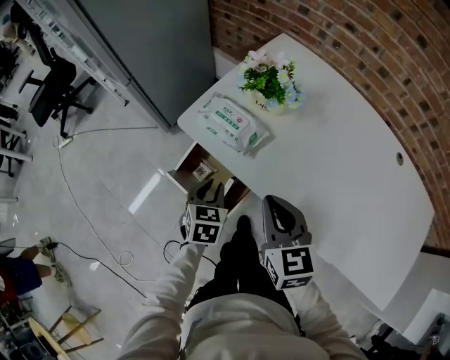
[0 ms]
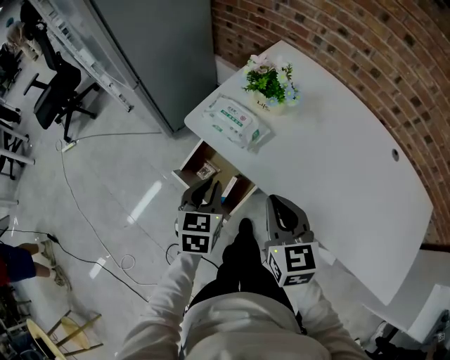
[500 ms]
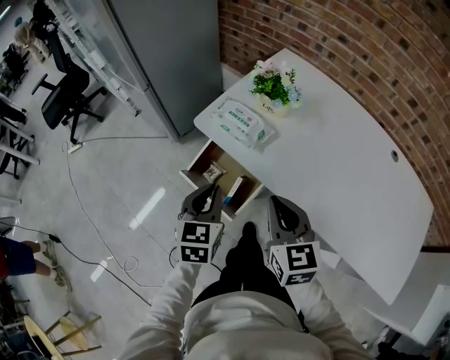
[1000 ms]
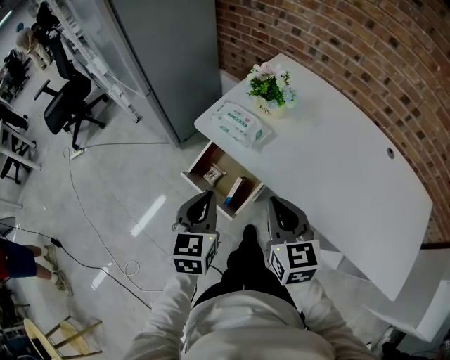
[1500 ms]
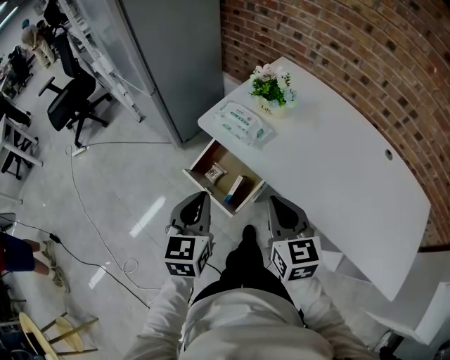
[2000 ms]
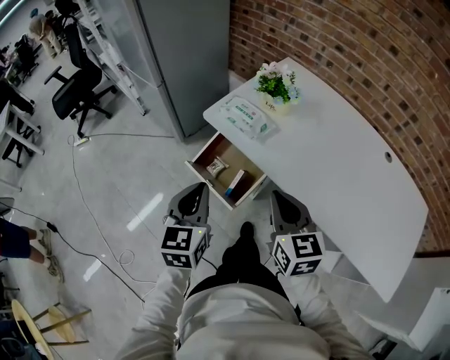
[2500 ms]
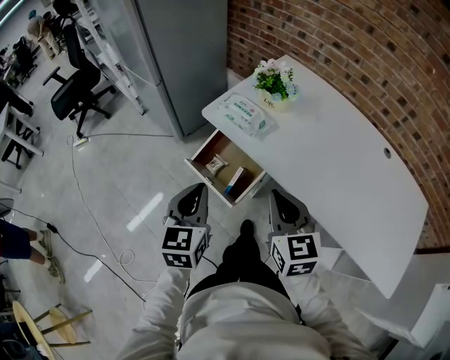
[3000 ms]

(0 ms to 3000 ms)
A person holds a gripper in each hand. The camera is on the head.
0 ms - 1500 ms: The right gripper travels backward by approximately 5 cm. Meanwhile the left gripper moves upward and backward, approximately 20 cm, and turns by approximately 20 degrees.
1500 ms - 3000 ms: The left gripper moves about 5 cm.

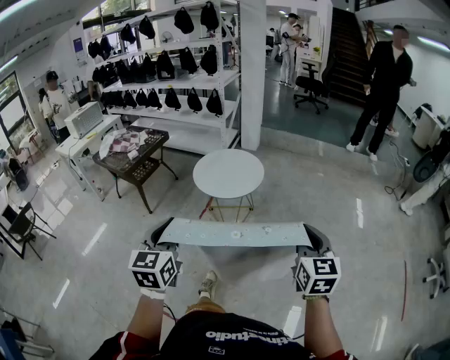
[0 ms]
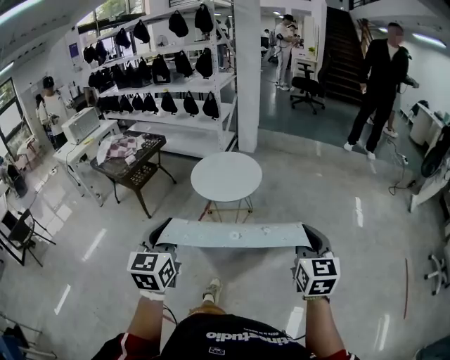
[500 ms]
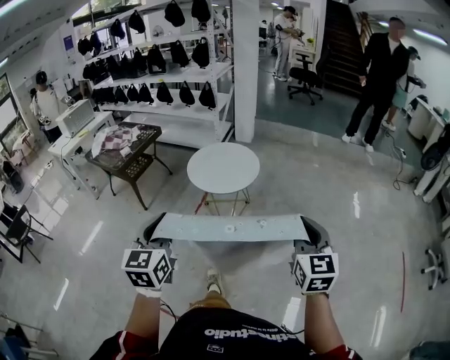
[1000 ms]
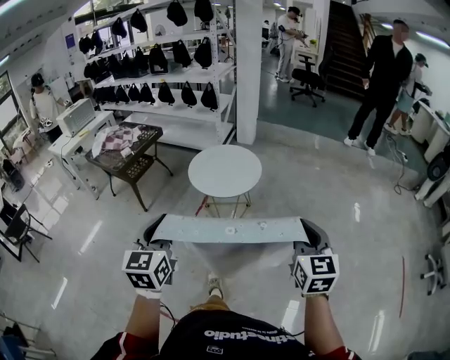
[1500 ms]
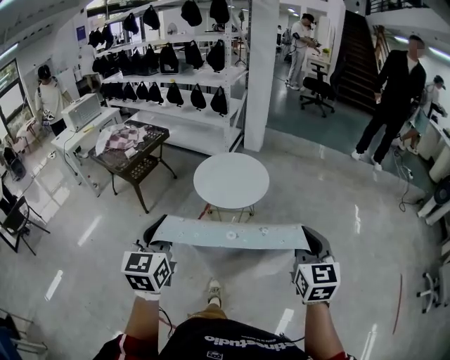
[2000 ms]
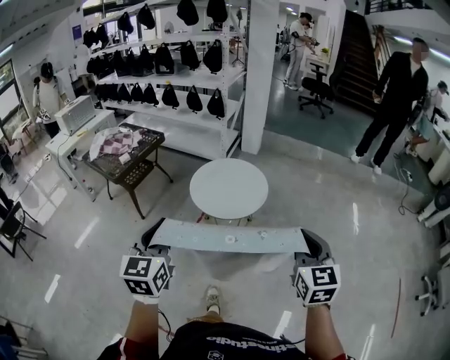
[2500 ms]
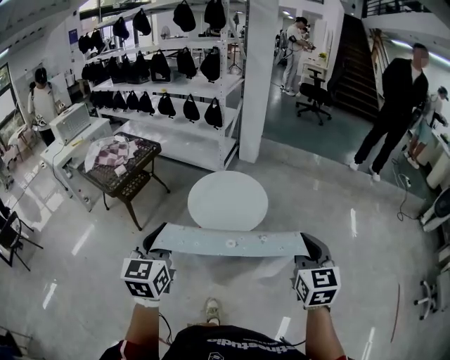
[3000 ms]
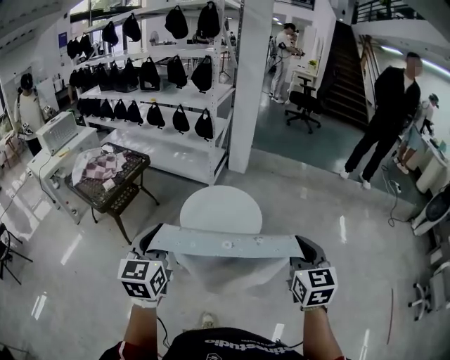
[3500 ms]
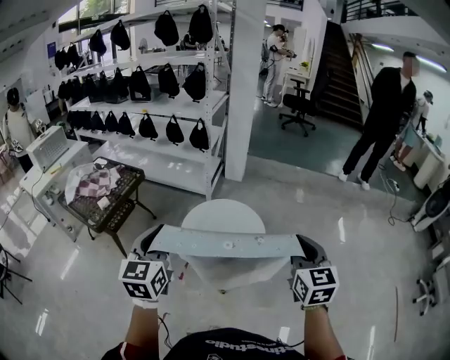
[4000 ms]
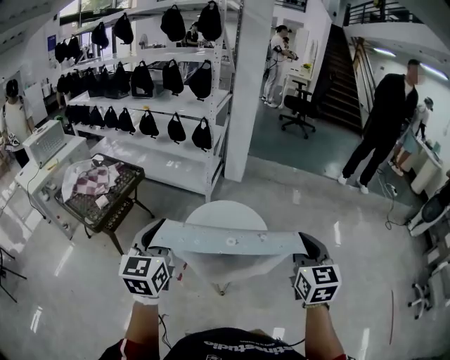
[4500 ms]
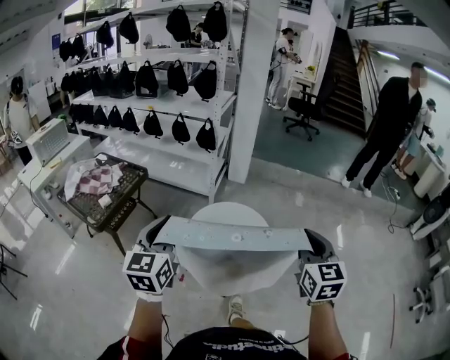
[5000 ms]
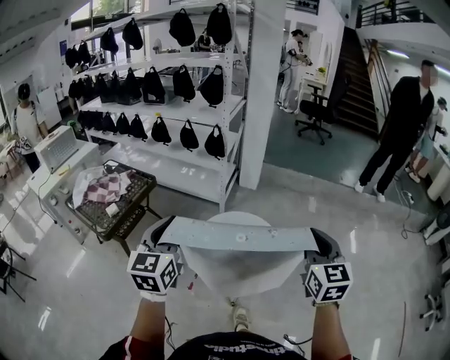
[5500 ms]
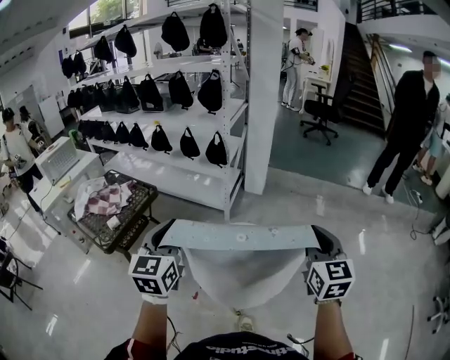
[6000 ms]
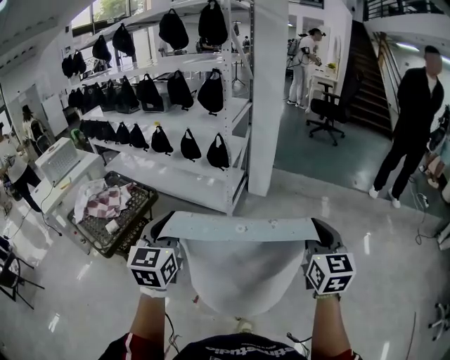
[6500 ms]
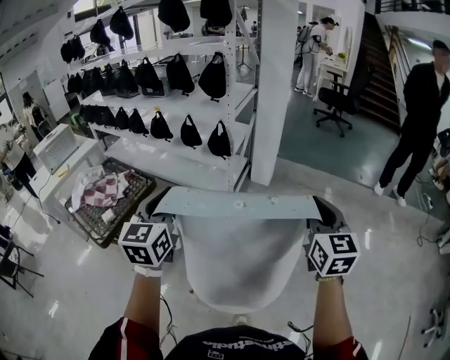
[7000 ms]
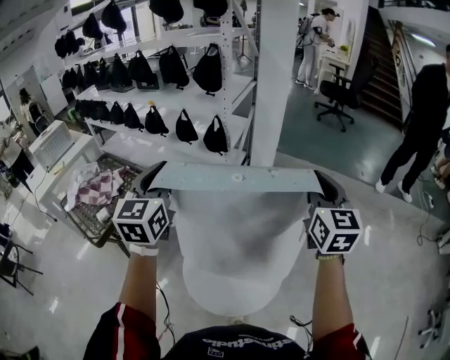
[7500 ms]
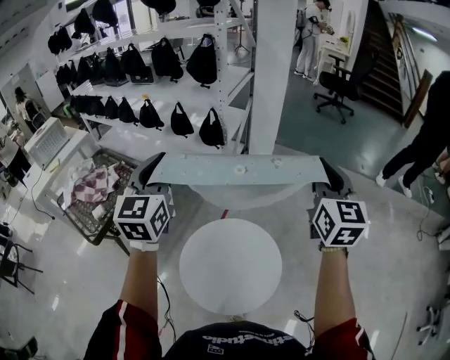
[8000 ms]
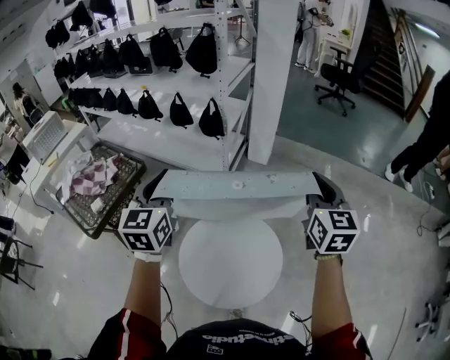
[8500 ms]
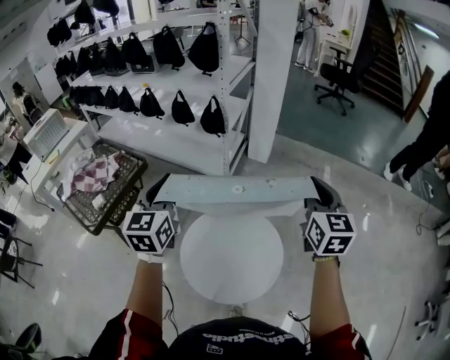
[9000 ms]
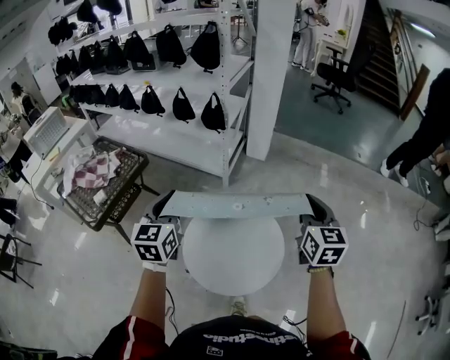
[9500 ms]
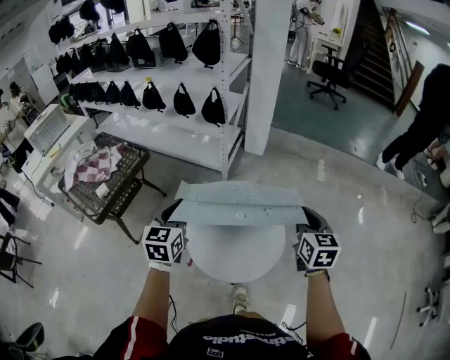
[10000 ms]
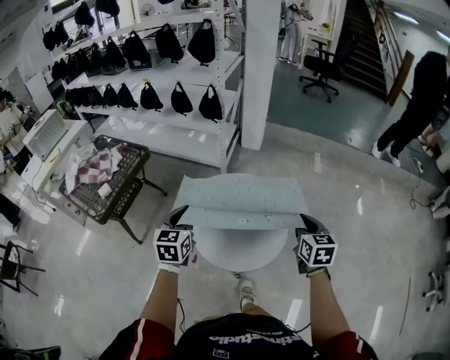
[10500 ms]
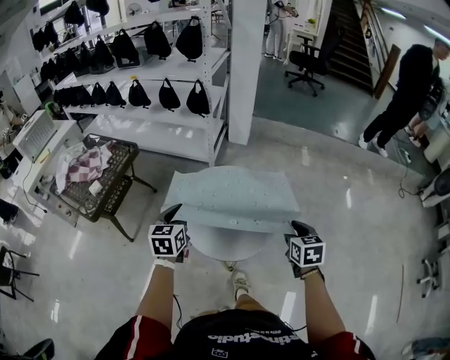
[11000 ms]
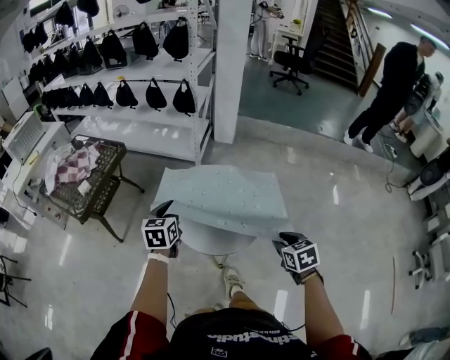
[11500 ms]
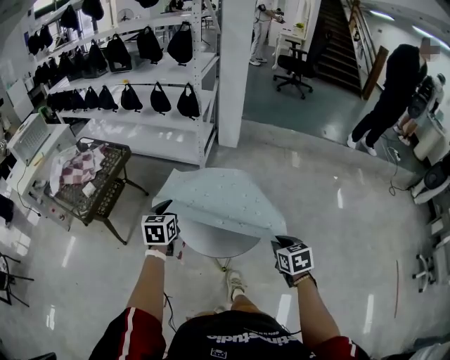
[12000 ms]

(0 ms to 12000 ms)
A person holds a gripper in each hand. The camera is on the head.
0 ms - 2000 ms: The grippers both shift forward by roughly 10 cm.
2000 ms - 4000 ms: The two grippers go roughly 30 cm forward.
4000 ms - 6000 ms: Both grippers move forward, approximately 20 cm.
6000 ms - 8000 ms: Both grippers travel together forward, some 25 cm.
8000 ms - 10000 ms: Both grippers move downward and backward, approximately 30 cm. The left gripper changes its angle by approximately 20 degrees; the right gripper turns by about 20 degrees.
10000 ms - 12000 ms: The right gripper moves backward and downward, roughly 25 cm, turns by about 30 degrees, and opens and closes again. The left gripper is displaced downward and backward by roughly 10 cm.

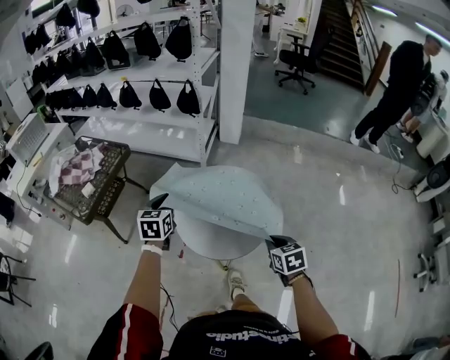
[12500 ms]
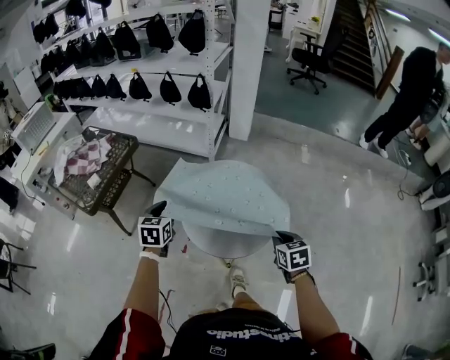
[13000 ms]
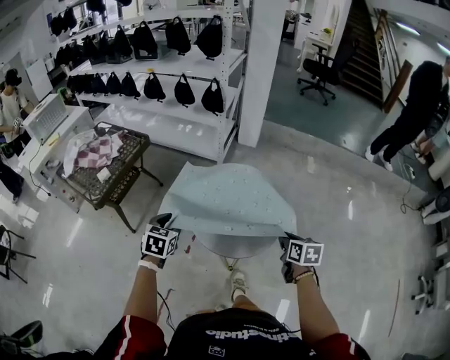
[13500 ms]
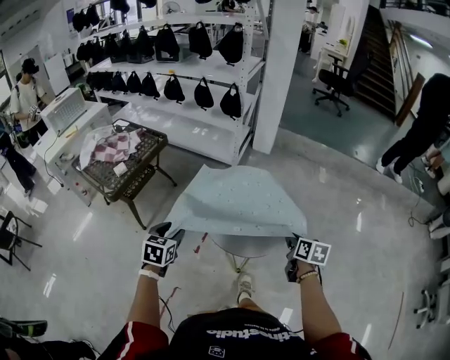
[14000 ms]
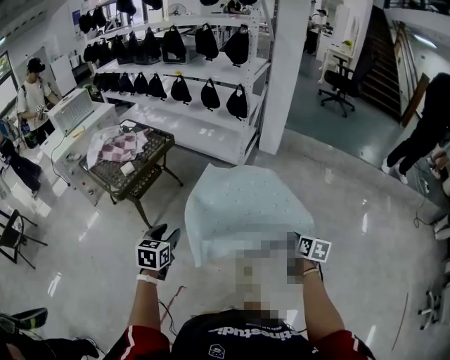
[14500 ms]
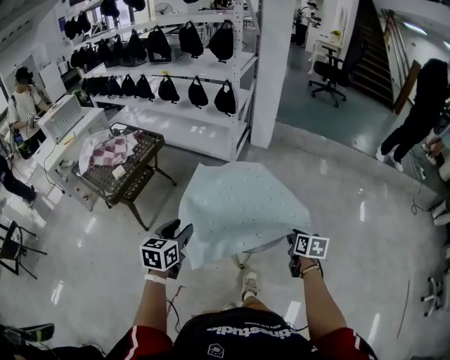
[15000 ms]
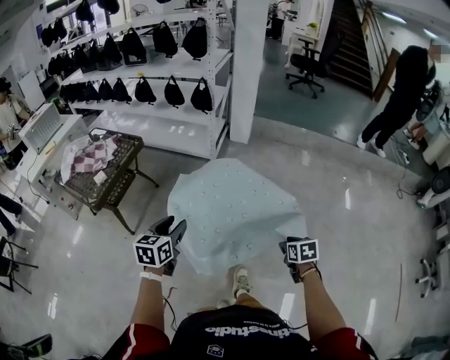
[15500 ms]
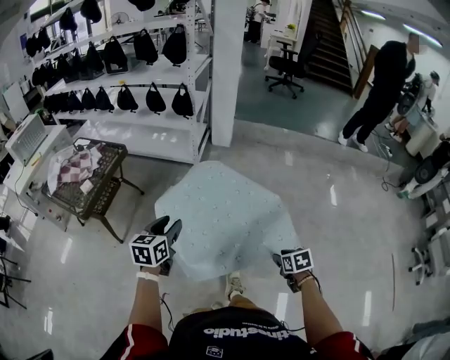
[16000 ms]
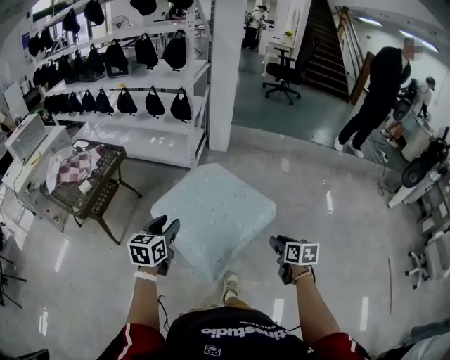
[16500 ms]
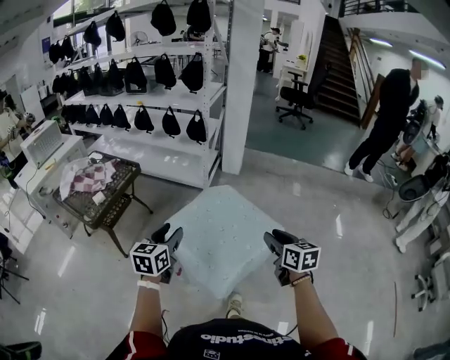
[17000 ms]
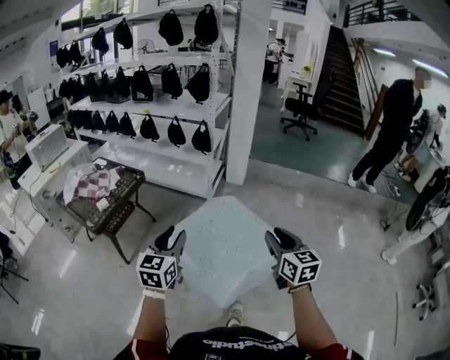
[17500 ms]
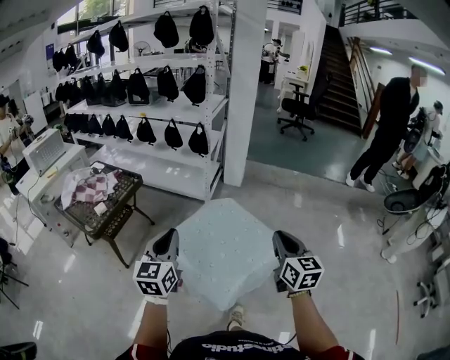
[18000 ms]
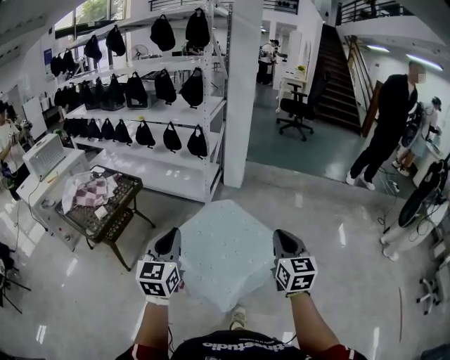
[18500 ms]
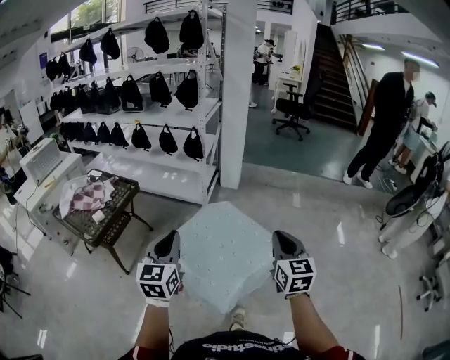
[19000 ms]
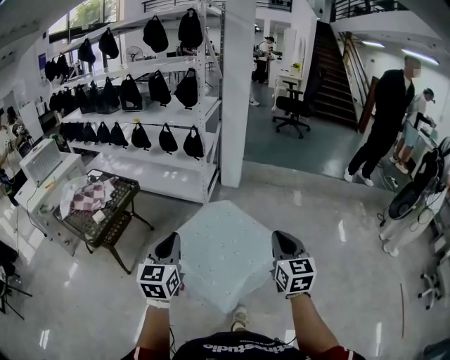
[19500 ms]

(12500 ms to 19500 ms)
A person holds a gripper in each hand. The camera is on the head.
12500 ms - 14500 ms: The right gripper rotates about 30 degrees; the left gripper travels backward and to the left by approximately 25 cm, and opens its fingers.
14500 ms - 16000 ms: The right gripper goes some 20 cm backward, to the right and downward, swivels some 20 degrees, and opens. Meanwhile the left gripper is displaced to the right by some 15 cm.
16000 ms - 17500 ms: The left gripper moves upward, roughly 10 cm, and turns by about 20 degrees; the right gripper is displaced upward and to the left by some 30 cm, and tips its fingers upward by some 50 degrees.
17500 ms - 19500 ms: The left gripper closes, while the right gripper closes its fingers.

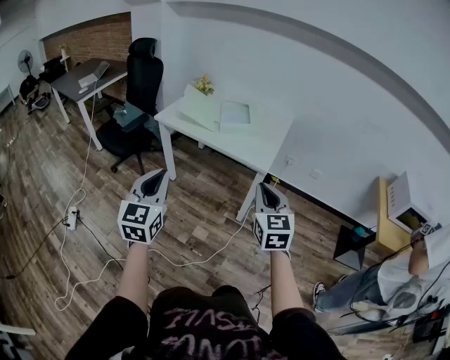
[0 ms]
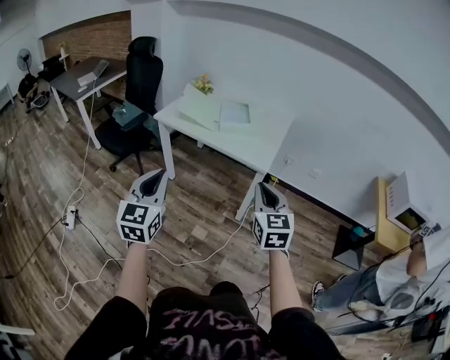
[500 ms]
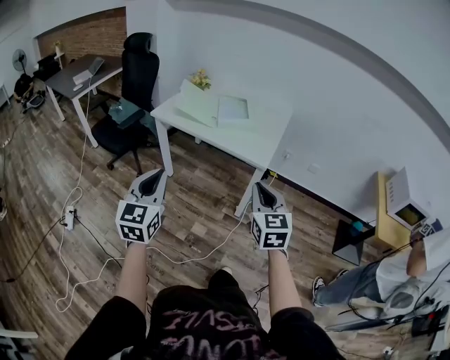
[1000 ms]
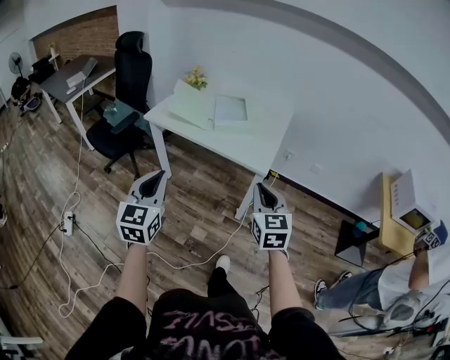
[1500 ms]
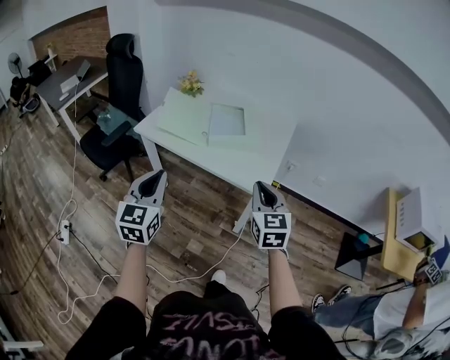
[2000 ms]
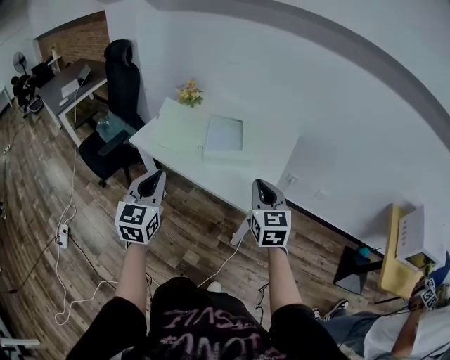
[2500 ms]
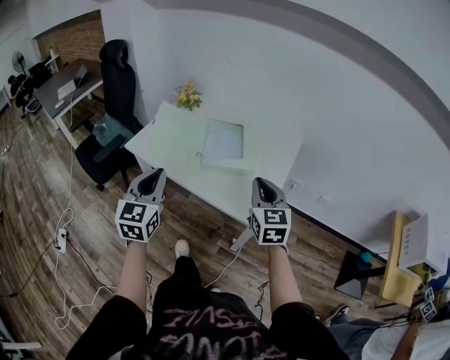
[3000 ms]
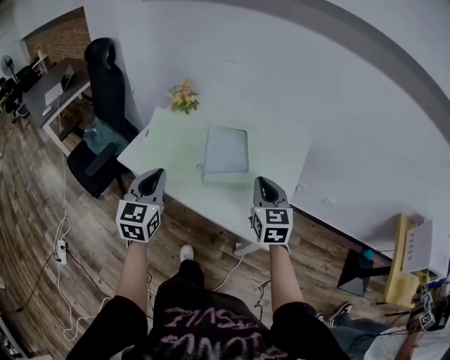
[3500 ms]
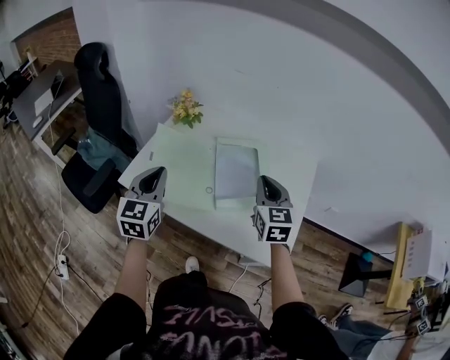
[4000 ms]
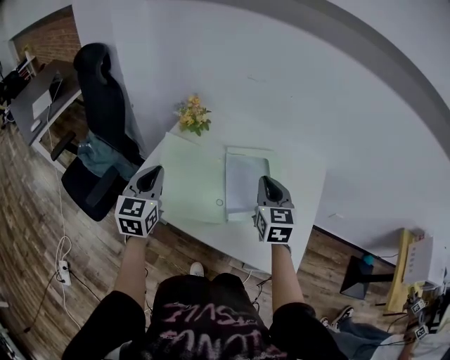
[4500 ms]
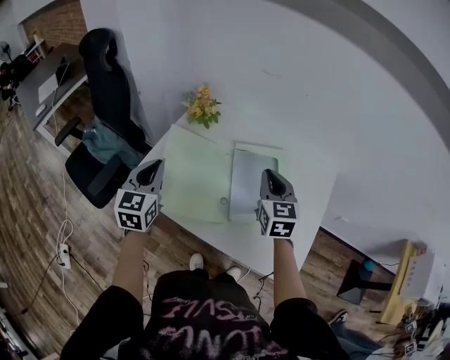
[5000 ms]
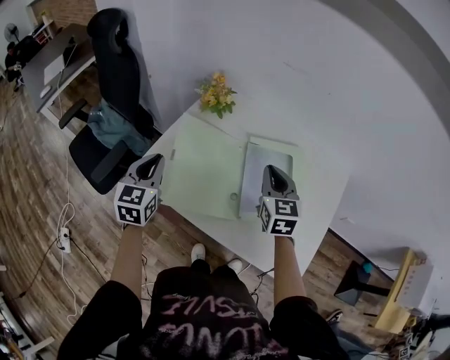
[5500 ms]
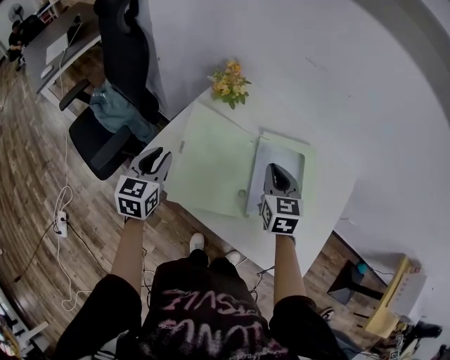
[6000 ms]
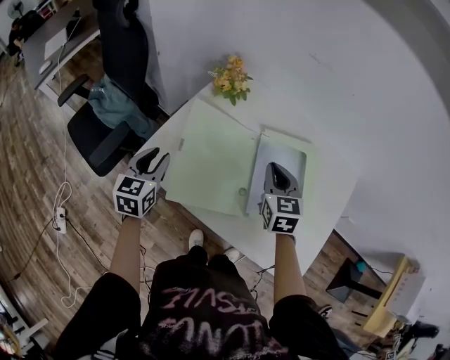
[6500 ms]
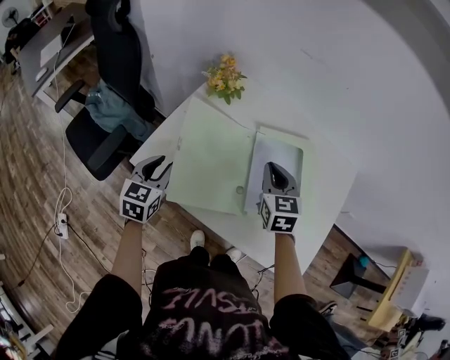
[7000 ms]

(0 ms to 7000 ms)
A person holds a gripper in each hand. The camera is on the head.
0 ms - 2000 ms: Both grippers travel together forward, roughly 25 cm.
2000 ms - 3500 ms: Both grippers move forward, some 25 cm.
3500 ms - 5000 ms: The grippers both shift forward and to the left by about 25 cm.
5000 ms - 7000 ms: The right gripper heads downward and to the left, covering approximately 10 cm, while the left gripper is displaced downward by some 15 cm, and opens its fingers.
